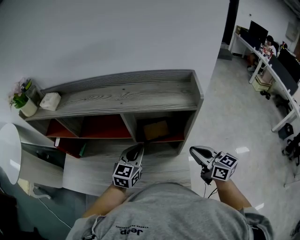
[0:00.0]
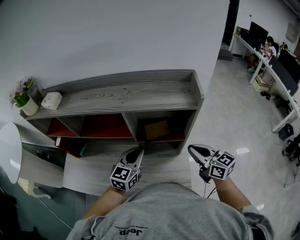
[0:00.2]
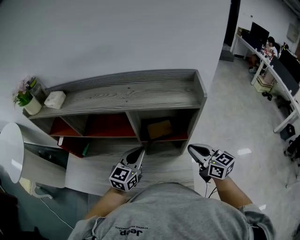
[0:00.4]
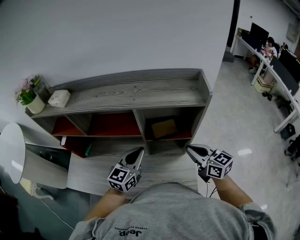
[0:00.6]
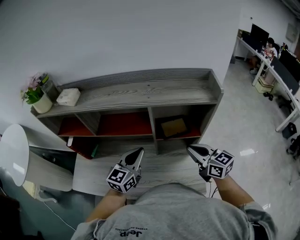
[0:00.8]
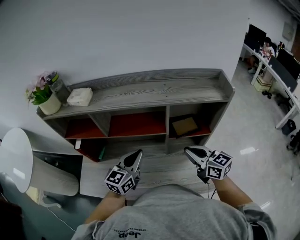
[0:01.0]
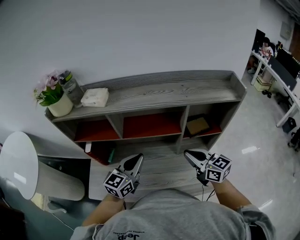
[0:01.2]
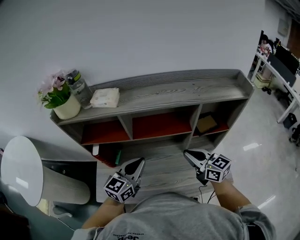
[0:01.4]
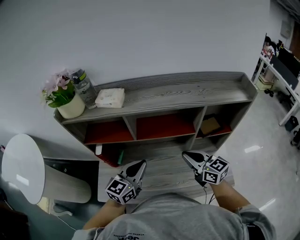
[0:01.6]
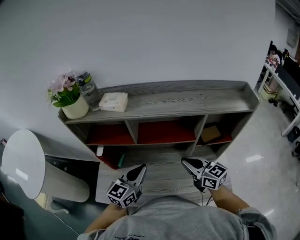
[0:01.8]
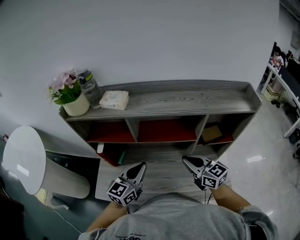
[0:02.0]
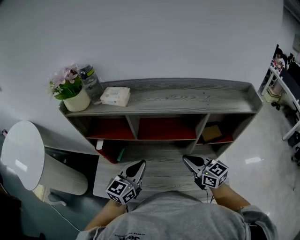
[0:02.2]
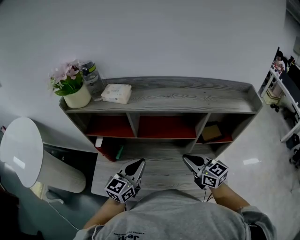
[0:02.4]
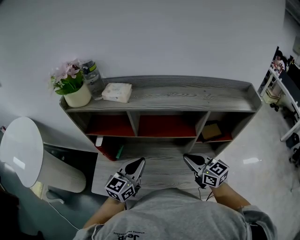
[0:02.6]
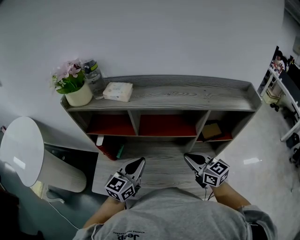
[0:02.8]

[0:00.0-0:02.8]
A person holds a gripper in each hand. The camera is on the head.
0.0 to 1.4 s: The two grippers go some 30 cm to the left.
1.4 to 2.8 s: The grippers move only a little.

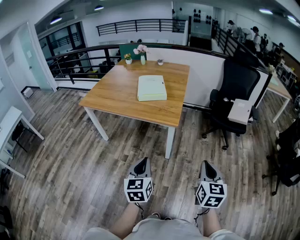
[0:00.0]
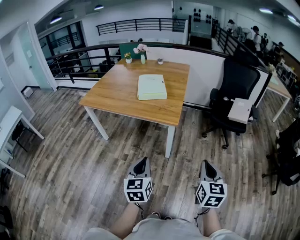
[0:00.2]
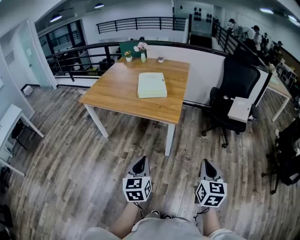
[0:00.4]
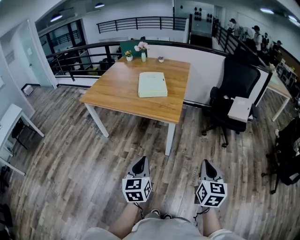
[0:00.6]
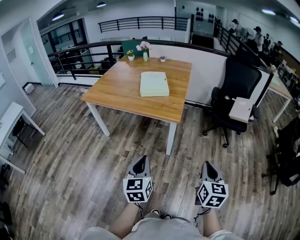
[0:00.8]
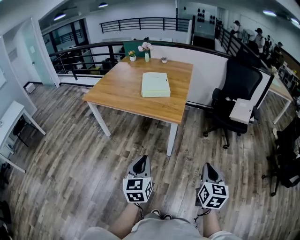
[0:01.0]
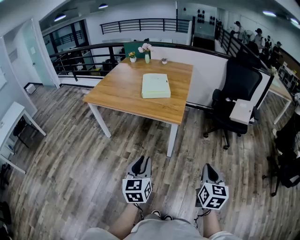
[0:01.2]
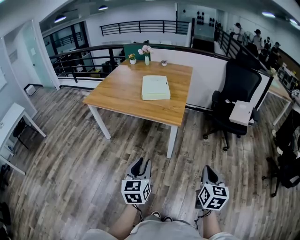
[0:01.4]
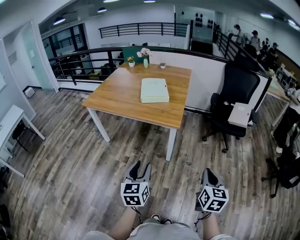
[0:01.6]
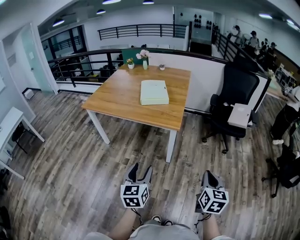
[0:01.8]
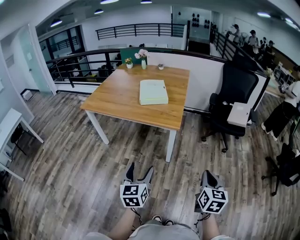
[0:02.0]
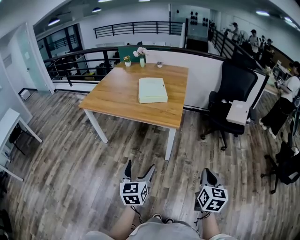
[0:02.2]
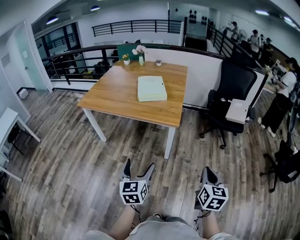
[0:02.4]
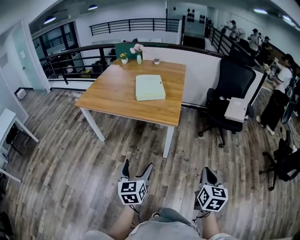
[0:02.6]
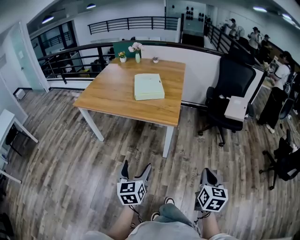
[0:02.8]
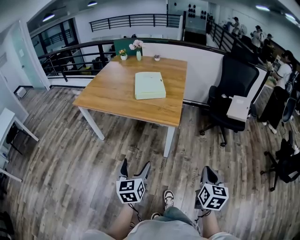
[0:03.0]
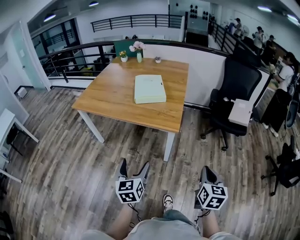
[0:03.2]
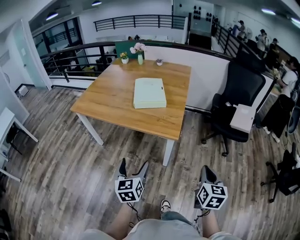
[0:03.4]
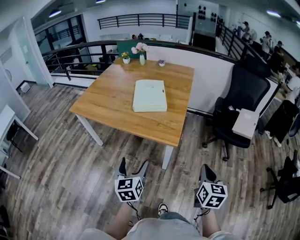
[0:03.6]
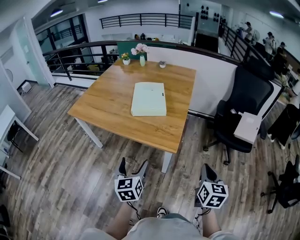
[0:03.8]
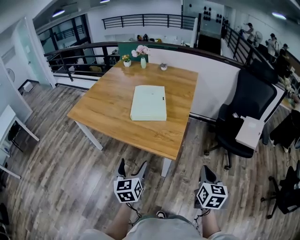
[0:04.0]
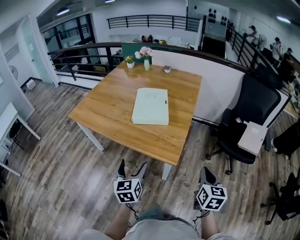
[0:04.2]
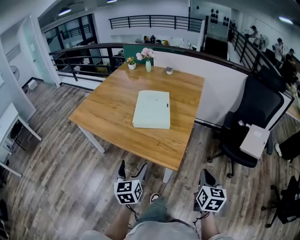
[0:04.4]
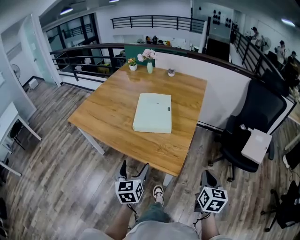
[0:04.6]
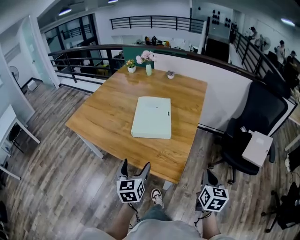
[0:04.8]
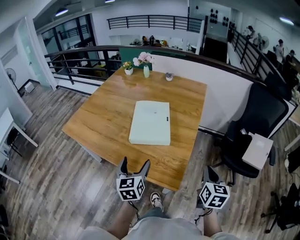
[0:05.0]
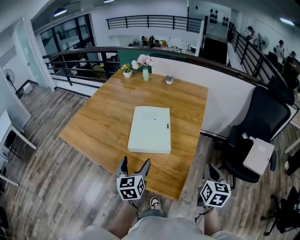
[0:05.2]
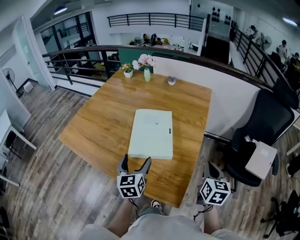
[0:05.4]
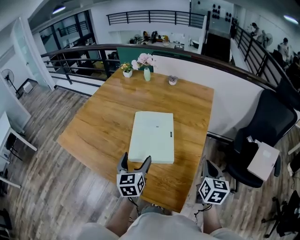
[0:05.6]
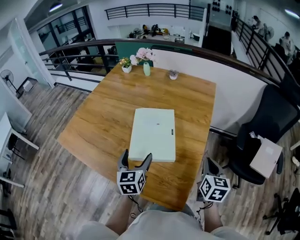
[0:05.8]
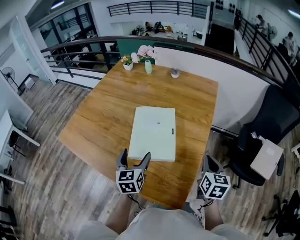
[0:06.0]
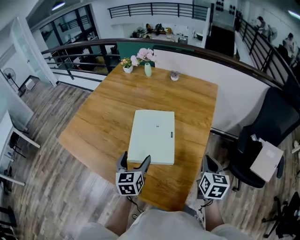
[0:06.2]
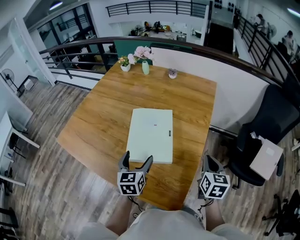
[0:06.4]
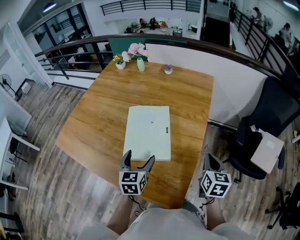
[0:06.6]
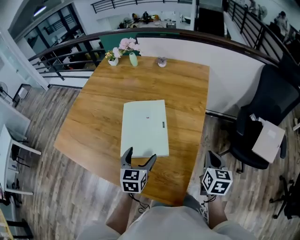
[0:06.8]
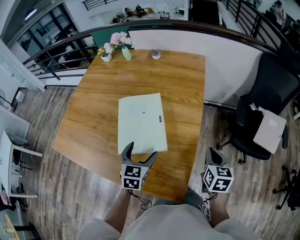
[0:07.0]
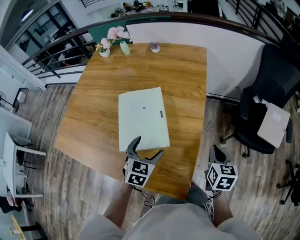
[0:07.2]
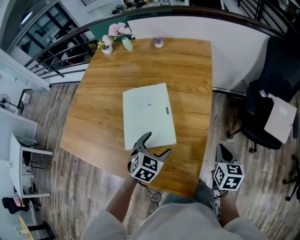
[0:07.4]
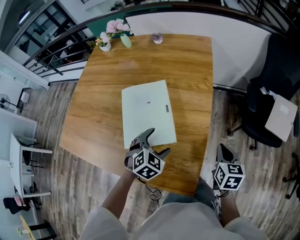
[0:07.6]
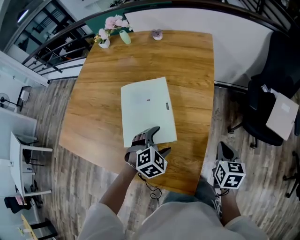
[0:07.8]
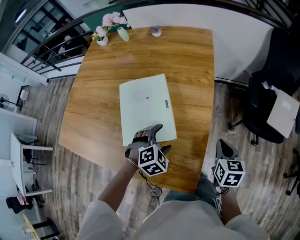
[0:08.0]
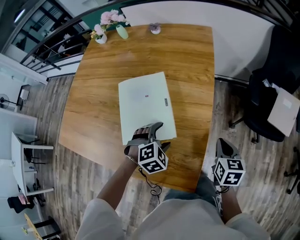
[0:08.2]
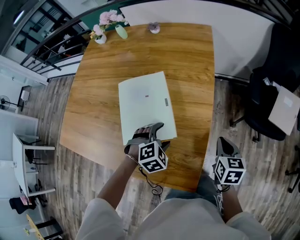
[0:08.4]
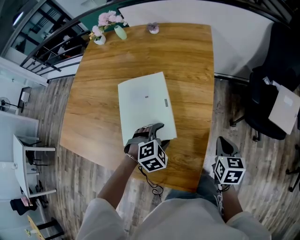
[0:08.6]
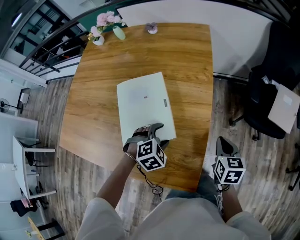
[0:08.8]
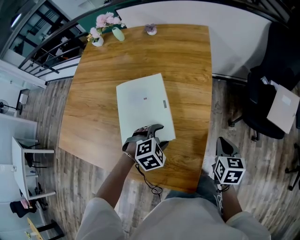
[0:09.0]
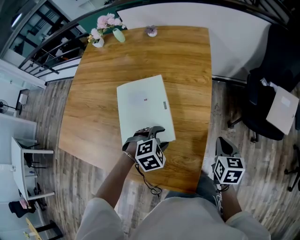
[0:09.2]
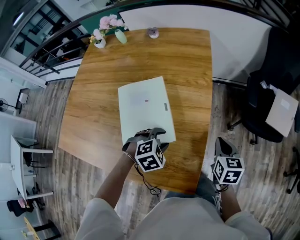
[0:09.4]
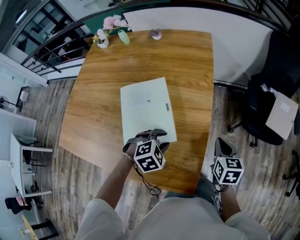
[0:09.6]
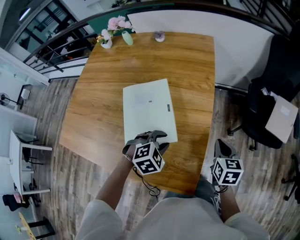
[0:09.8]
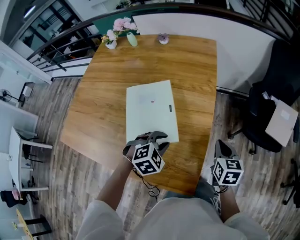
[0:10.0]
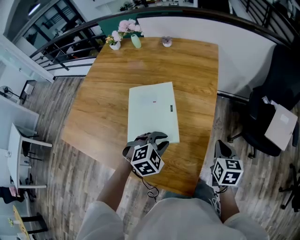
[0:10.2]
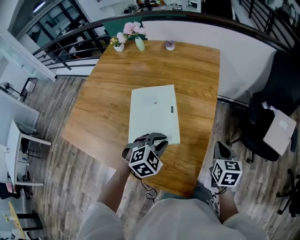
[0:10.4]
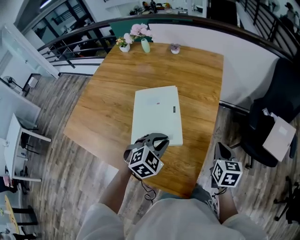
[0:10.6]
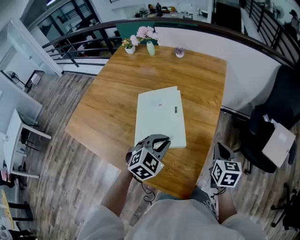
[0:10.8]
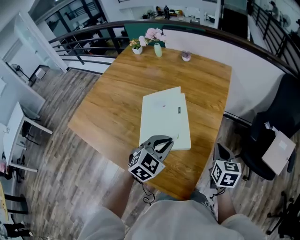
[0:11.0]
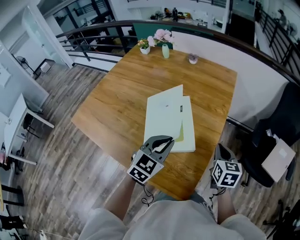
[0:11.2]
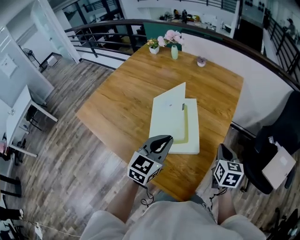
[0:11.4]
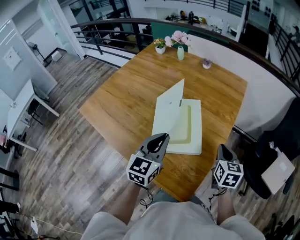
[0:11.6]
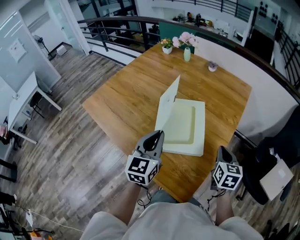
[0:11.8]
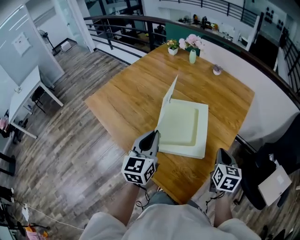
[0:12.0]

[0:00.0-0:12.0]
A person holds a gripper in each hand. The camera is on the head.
0.0 to 1.6 s: The left gripper opens up.
1.6 to 3.0 s: The right gripper changes place by about 5 cm, while the left gripper goes approximately 5 cm forward, and opens.
3.0 to 4.4 s: The two grippers go roughly 30 cm forward.
4.4 to 6.0 s: The two grippers go roughly 30 cm forward.
6.0 to 7.6 s: The right gripper is displaced downward and to the right by roughly 10 cm; the left gripper heads to the right and downward, covering some 15 cm, and points its fingers roughly 30 degrees further downward.
7.6 to 9.0 s: The left gripper rotates about 20 degrees, and closes up.
9.0 to 10.4 s: The left gripper is displaced upward by about 5 cm, and closes its fingers; the right gripper ends up roughly 5 cm from where it was.
10.4 to 12.0 s: The right gripper moves about 10 cm, while the left gripper moves approximately 20 cm, and tilts its fingers some 40 degrees upward.

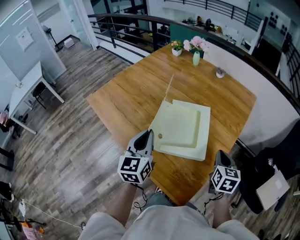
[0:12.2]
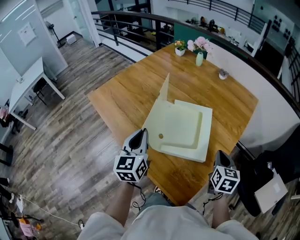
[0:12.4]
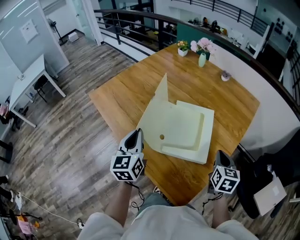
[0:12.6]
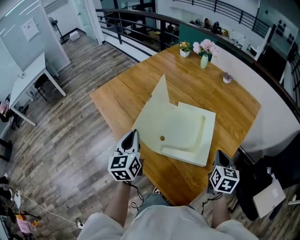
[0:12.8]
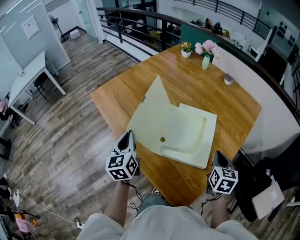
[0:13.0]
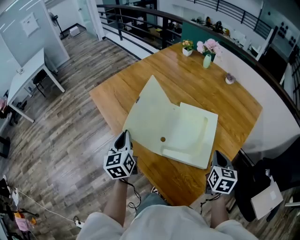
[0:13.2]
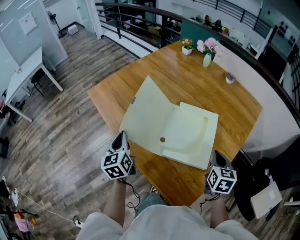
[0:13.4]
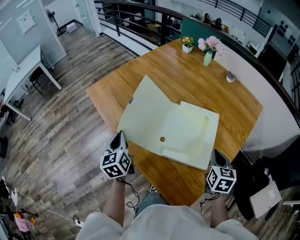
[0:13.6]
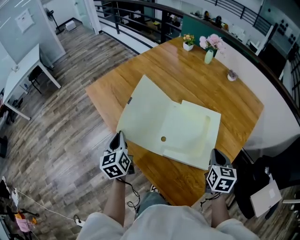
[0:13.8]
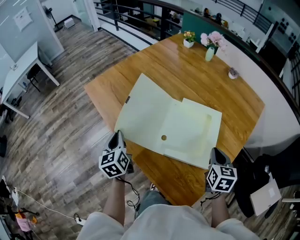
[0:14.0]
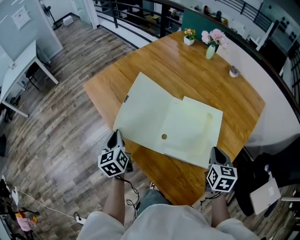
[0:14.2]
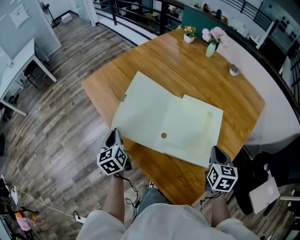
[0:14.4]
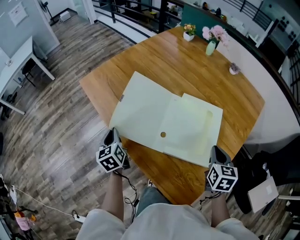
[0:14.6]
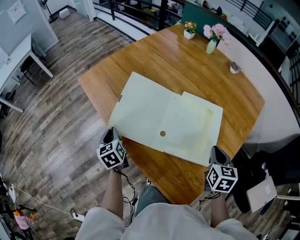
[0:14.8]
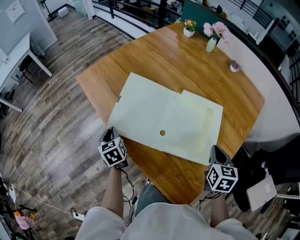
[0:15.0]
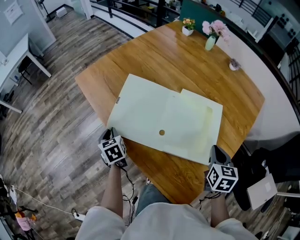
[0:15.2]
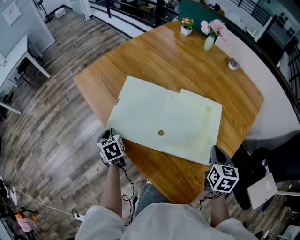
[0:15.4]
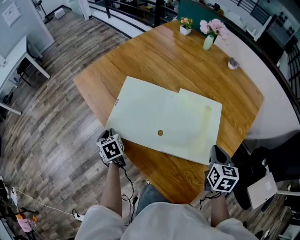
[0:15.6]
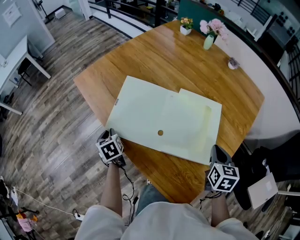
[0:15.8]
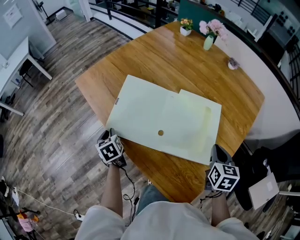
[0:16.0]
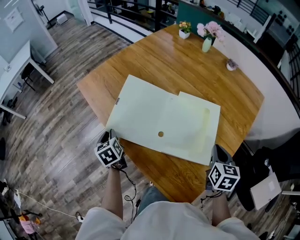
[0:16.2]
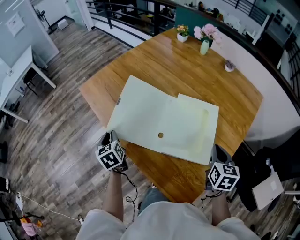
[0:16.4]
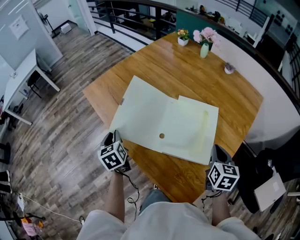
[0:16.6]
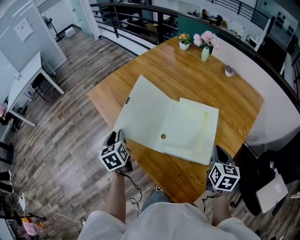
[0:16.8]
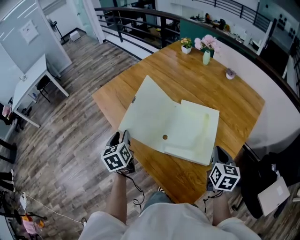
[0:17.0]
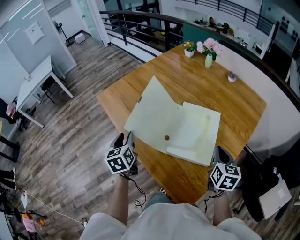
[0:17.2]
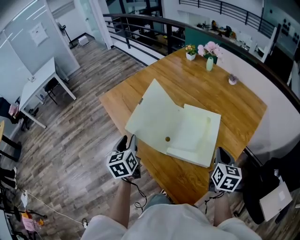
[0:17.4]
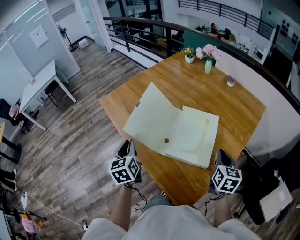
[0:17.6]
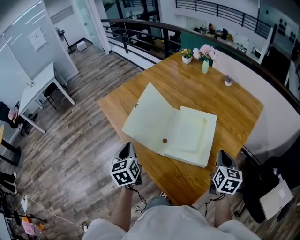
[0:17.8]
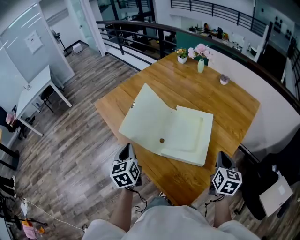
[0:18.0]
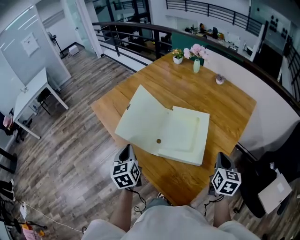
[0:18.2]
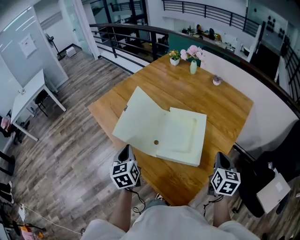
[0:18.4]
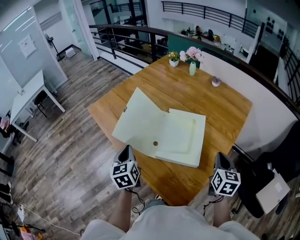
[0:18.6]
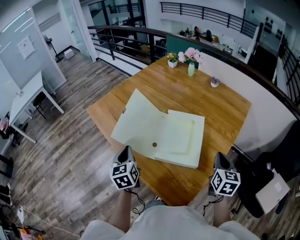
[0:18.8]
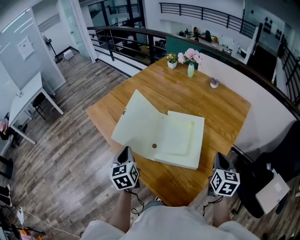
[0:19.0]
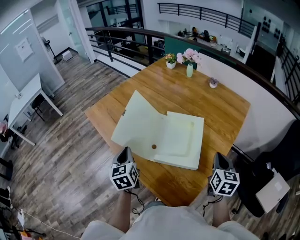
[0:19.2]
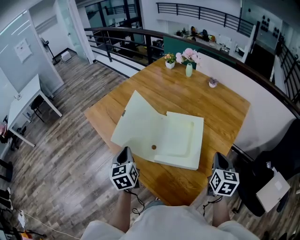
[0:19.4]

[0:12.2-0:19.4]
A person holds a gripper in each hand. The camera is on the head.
12.2 to 13.6 s: The right gripper is displaced to the left and forward by some 10 cm, while the left gripper heads to the left and downward, covering about 20 cm, and swivels about 30 degrees.
13.6 to 15.0 s: The left gripper heads downward and to the left, covering approximately 15 cm, and rotates about 20 degrees.
15.0 to 16.6 s: The left gripper shifts some 5 cm upward.
16.6 to 18.0 s: The left gripper moves to the right, backward and upward, some 15 cm. The right gripper moves backward, some 5 cm.
18.0 to 19.4 s: The grippers make only small movements.

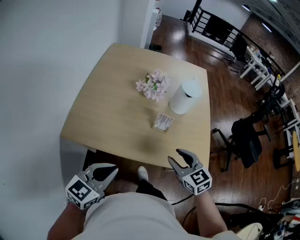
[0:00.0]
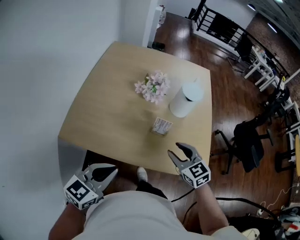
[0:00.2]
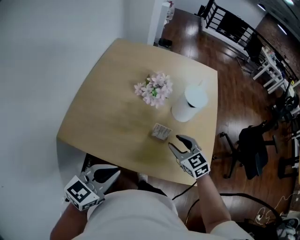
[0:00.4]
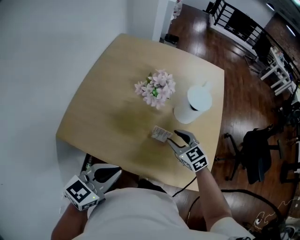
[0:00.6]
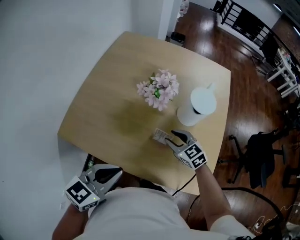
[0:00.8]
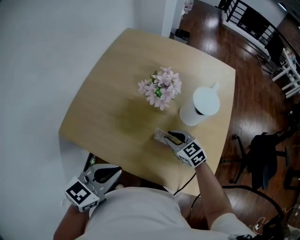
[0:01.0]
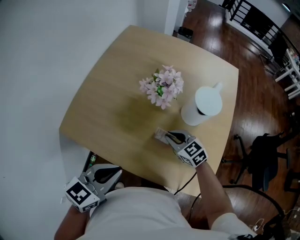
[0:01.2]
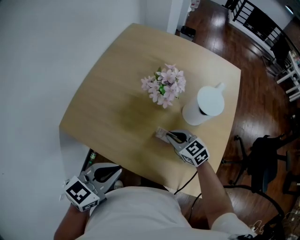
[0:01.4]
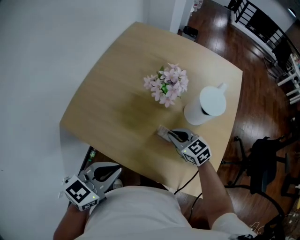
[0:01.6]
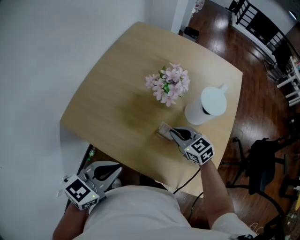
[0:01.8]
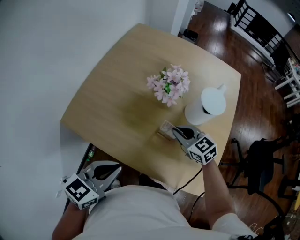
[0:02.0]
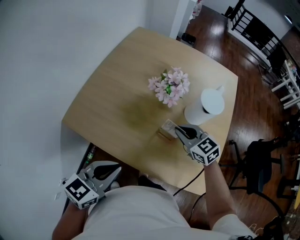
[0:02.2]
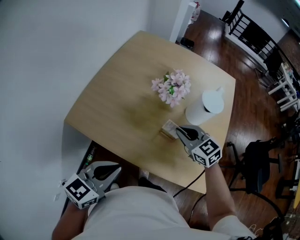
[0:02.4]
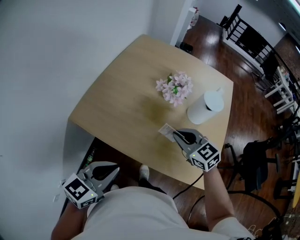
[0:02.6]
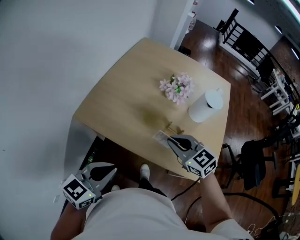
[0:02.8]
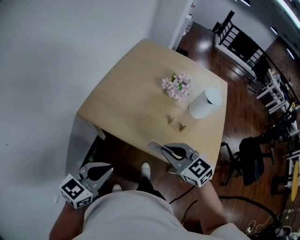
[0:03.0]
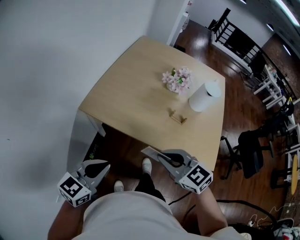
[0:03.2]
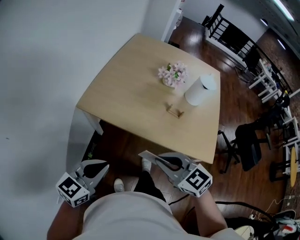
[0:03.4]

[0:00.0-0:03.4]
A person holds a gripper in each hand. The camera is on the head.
0.0 to 1.6 s: The left gripper goes roughly 15 cm forward and to the right, while the right gripper goes about 25 cm forward and downward, rotates about 30 degrees, and closes its fingers.
1.6 to 3.4 s: The left gripper travels to the left and backward by approximately 30 cm; the right gripper goes about 40 cm backward, to the left and upward.
